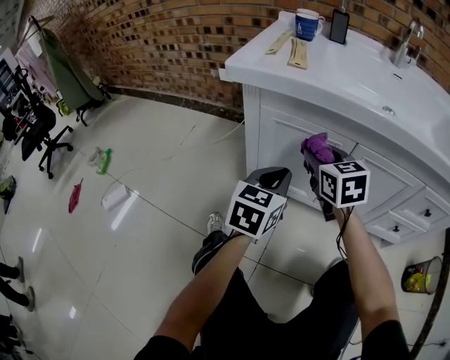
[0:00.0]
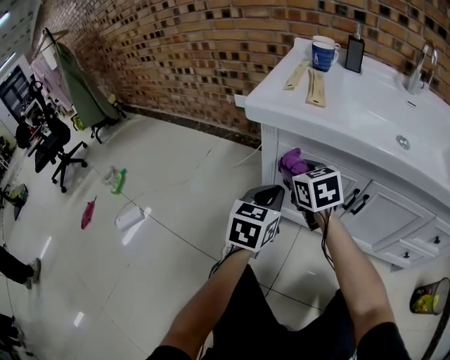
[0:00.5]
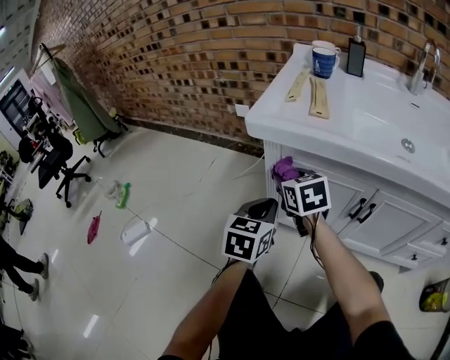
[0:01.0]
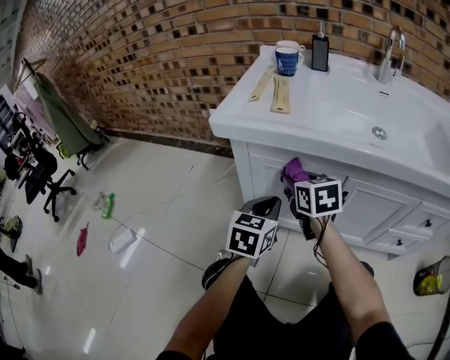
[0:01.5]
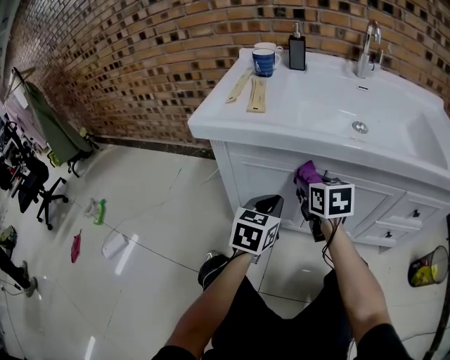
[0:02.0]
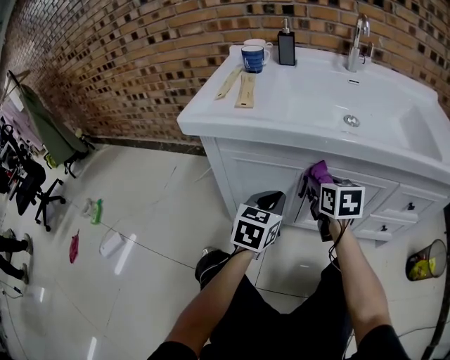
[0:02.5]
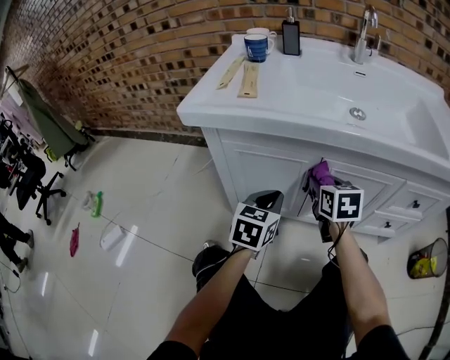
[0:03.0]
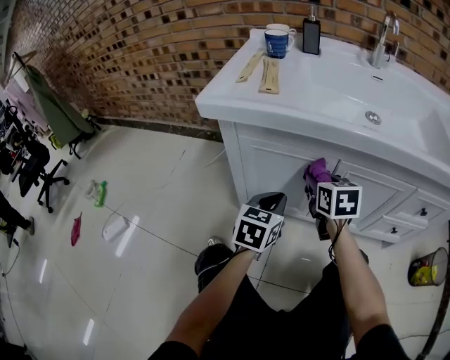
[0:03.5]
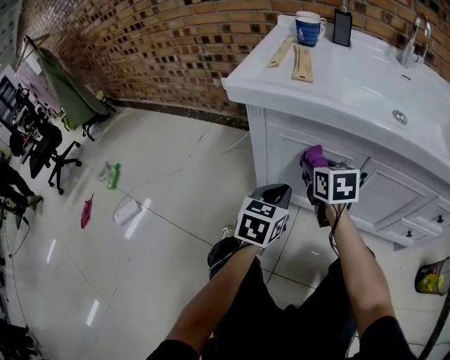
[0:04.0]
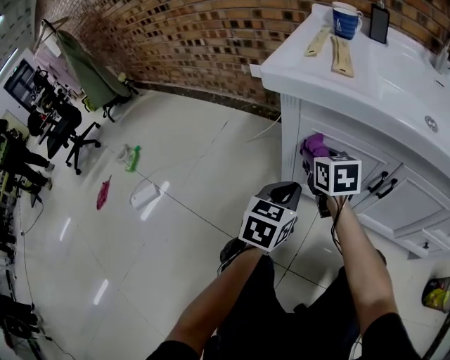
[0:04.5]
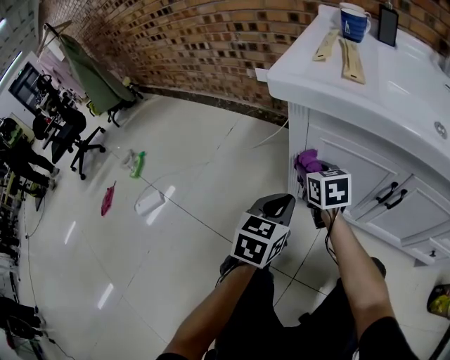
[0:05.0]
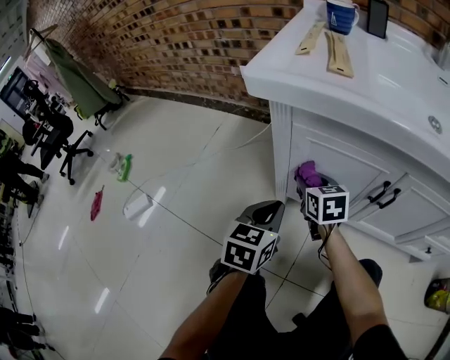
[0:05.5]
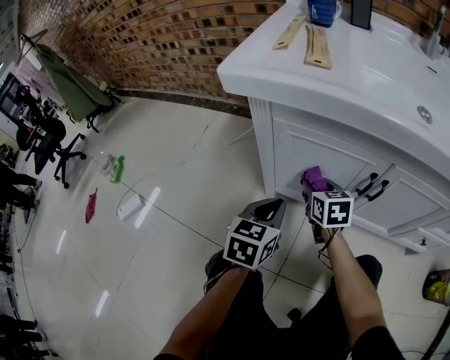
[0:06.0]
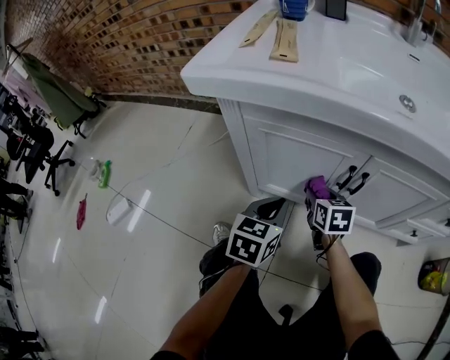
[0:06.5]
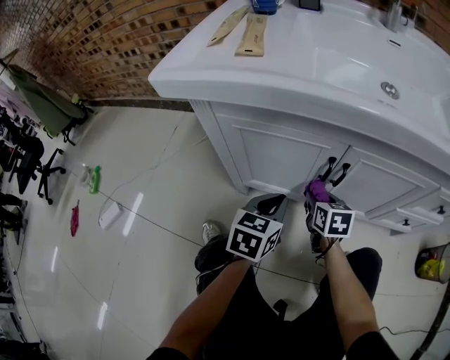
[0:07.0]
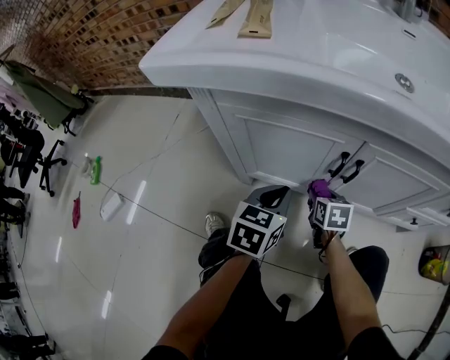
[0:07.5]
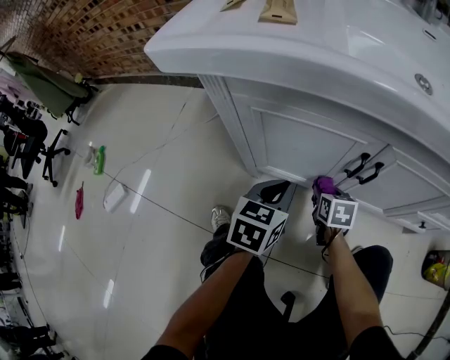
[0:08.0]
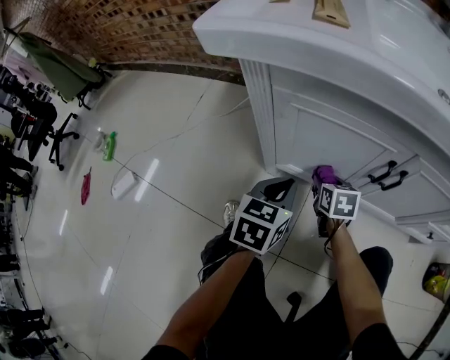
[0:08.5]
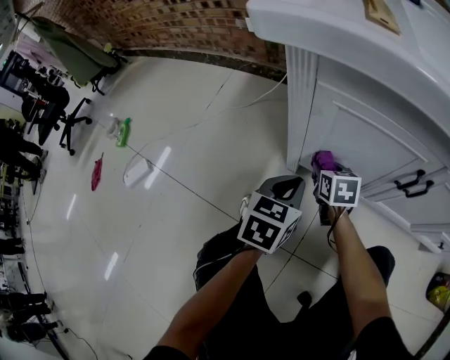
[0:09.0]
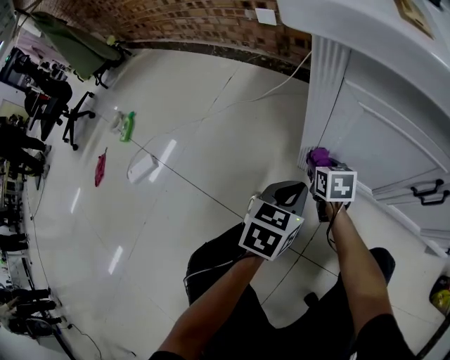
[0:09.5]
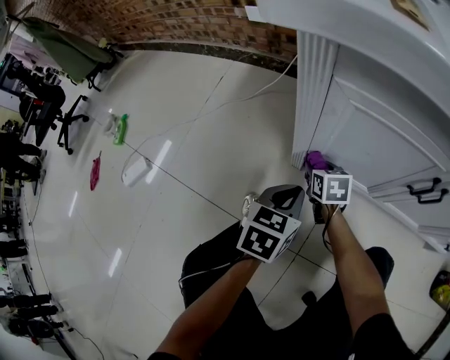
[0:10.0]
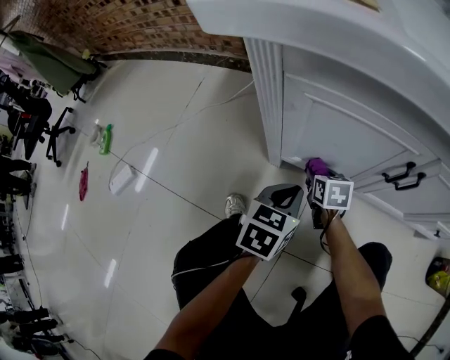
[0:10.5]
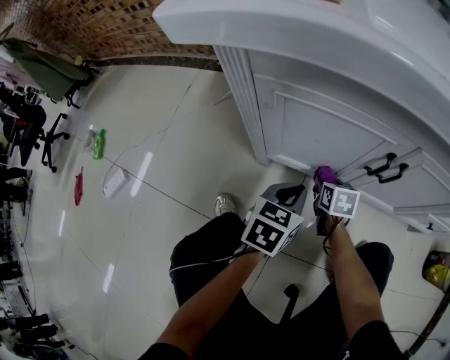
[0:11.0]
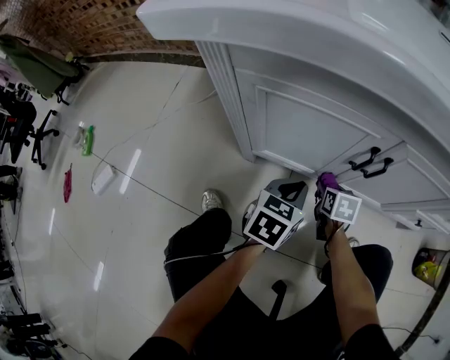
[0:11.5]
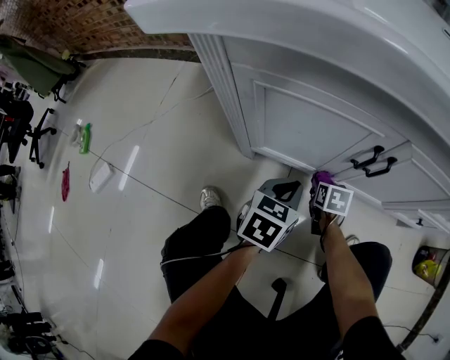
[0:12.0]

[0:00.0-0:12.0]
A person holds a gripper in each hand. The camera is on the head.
0:00.0 to 0:02.0: The left gripper moves approximately 10 cm to the left and comes back, while the right gripper goes to the left and returns, approximately 15 cm each way.
0:02.0 to 0:04.0: Both grippers move to the left, some 10 cm.
0:04.0 to 0:06.0: The left gripper shifts about 5 cm downward, while the right gripper is displaced downward by approximately 15 cm, and moves roughly 15 cm to the left and comes back.
0:06.0 to 0:08.0: The right gripper goes about 20 cm downward and to the right, and swivels about 20 degrees, while the left gripper moves to the right, about 5 cm.
0:08.0 to 0:10.0: The left gripper shifts roughly 10 cm to the left. Meanwhile the right gripper is displaced to the left by approximately 20 cm.
0:10.0 to 0:12.0: The left gripper moves to the right, some 15 cm. Meanwhile the right gripper heads to the right, covering about 25 cm, and rotates about 20 degrees.

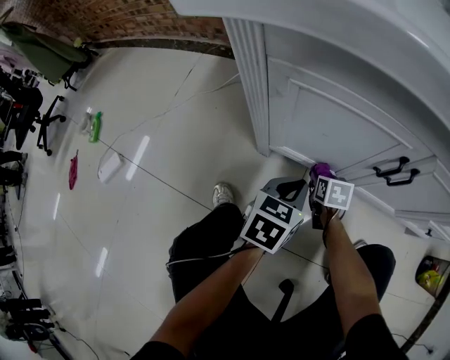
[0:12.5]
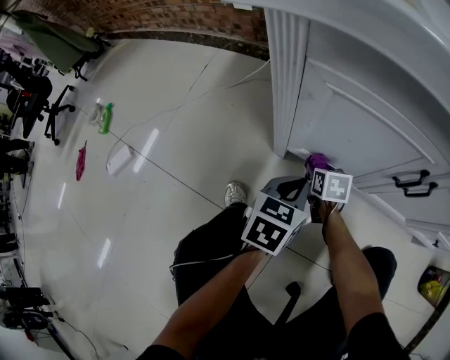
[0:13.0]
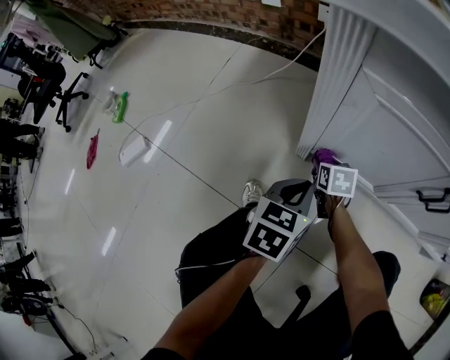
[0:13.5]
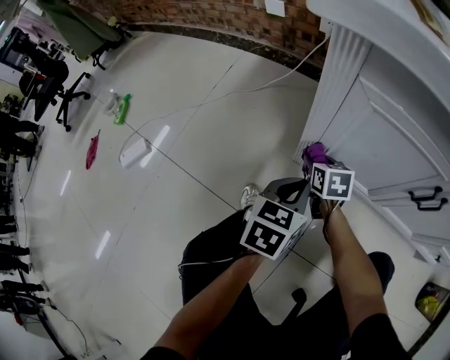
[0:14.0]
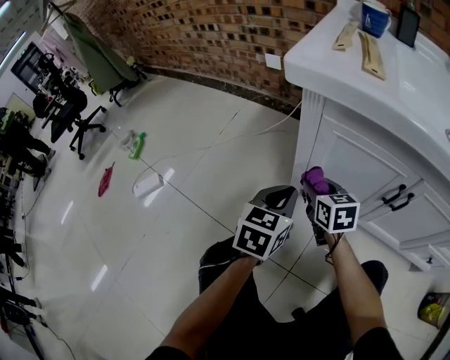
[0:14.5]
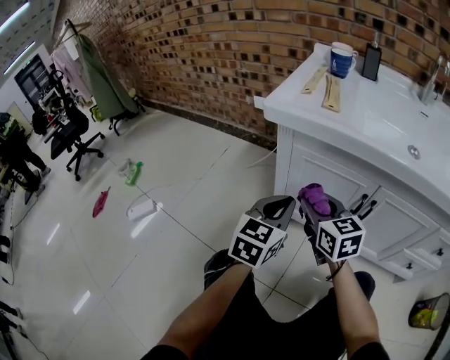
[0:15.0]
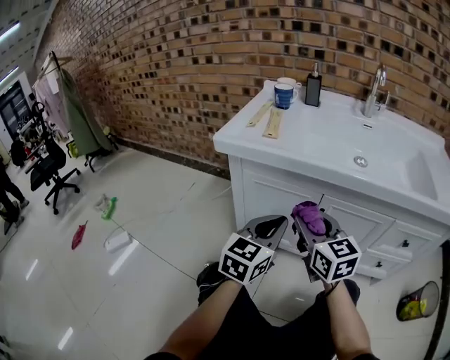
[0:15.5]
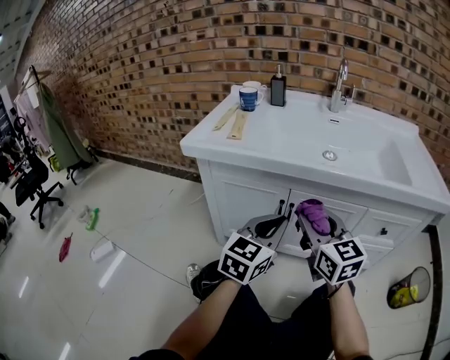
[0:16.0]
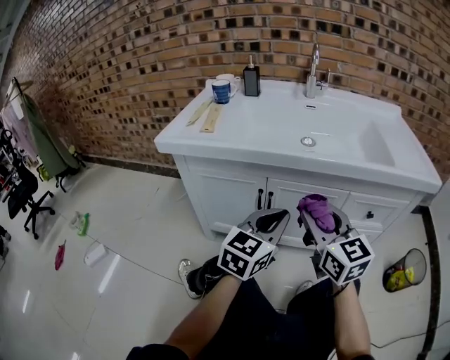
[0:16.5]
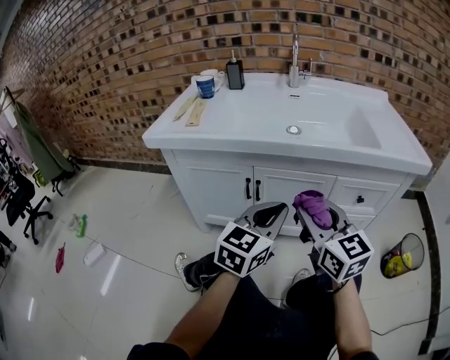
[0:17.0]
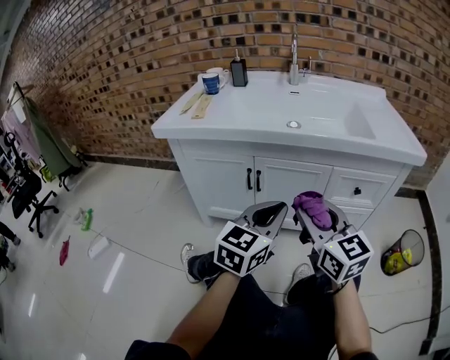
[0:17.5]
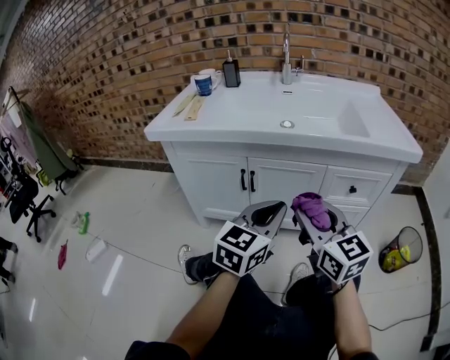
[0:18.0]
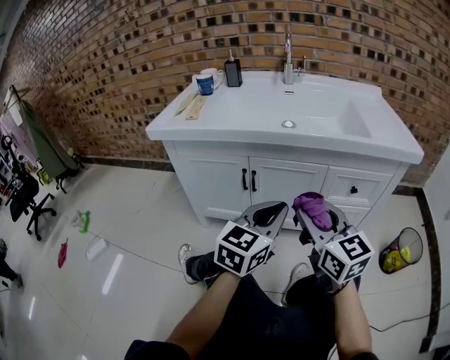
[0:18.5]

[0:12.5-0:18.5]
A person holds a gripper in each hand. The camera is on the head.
0:12.5 to 0:14.5: The right gripper heads upward and to the left, covering about 30 cm, and turns by roughly 30 degrees. Meanwhile the left gripper heads to the left and upward, covering approximately 20 cm.
0:14.5 to 0:16.5: The left gripper is displaced to the right and upward by approximately 40 cm, and rotates some 40 degrees; the right gripper heads to the right, upward and backward, covering some 50 cm, and turns by approximately 40 degrees.
0:16.5 to 0:18.5: Both grippers travel together backward and to the right, some 10 cm.

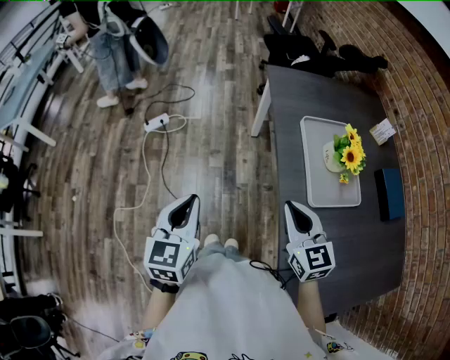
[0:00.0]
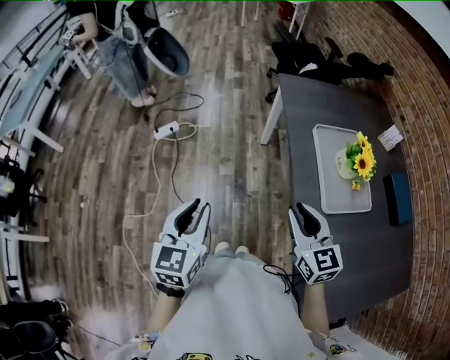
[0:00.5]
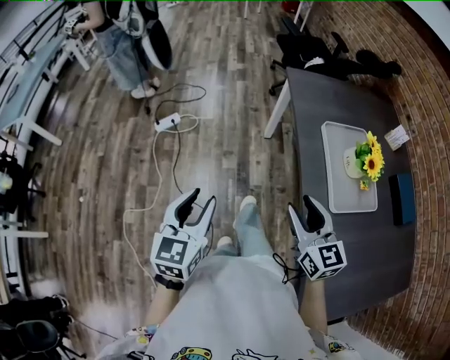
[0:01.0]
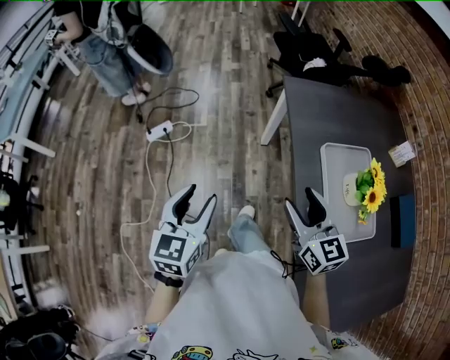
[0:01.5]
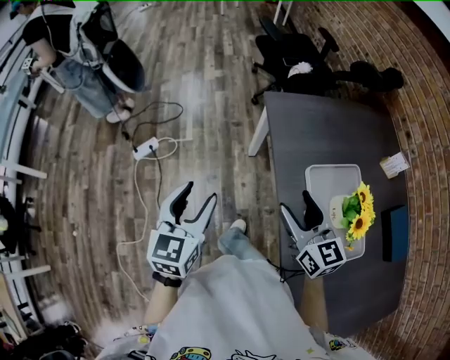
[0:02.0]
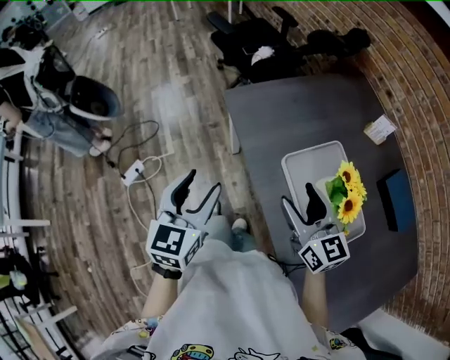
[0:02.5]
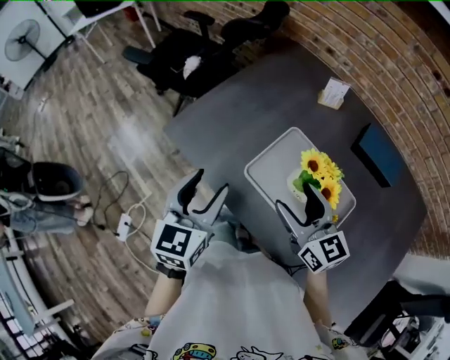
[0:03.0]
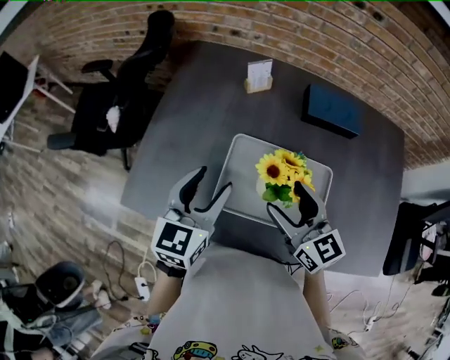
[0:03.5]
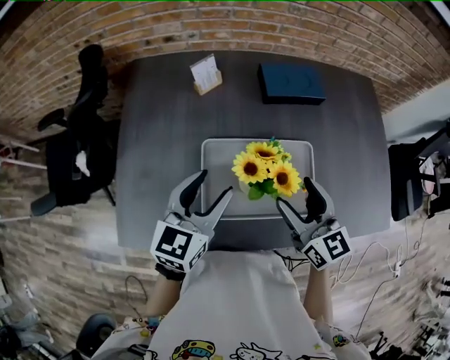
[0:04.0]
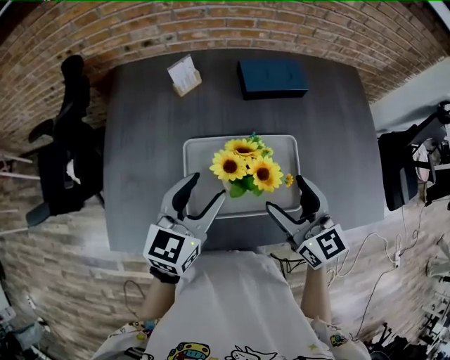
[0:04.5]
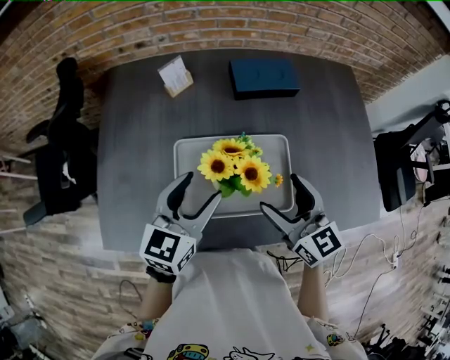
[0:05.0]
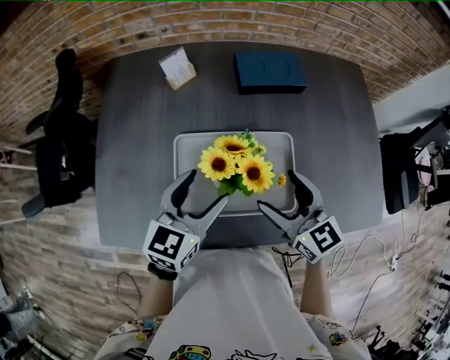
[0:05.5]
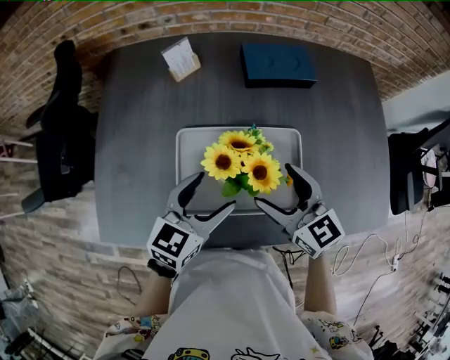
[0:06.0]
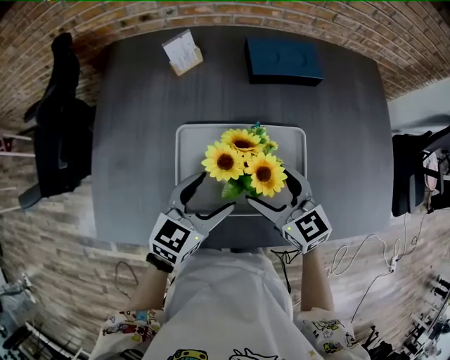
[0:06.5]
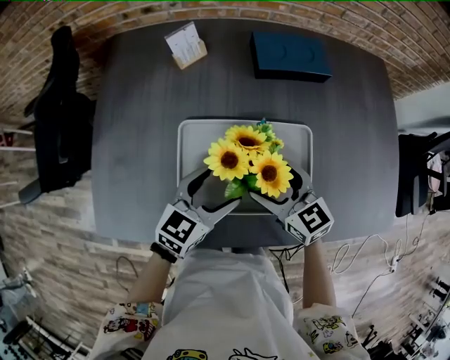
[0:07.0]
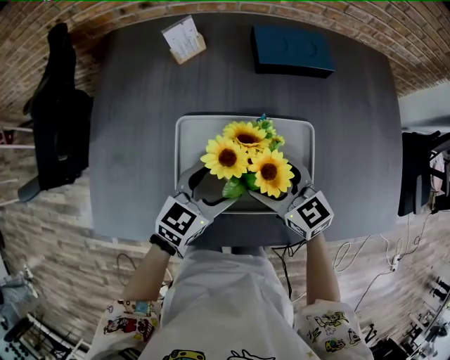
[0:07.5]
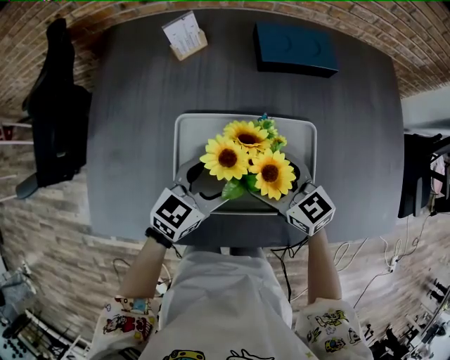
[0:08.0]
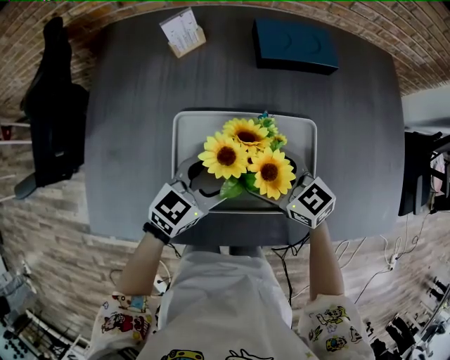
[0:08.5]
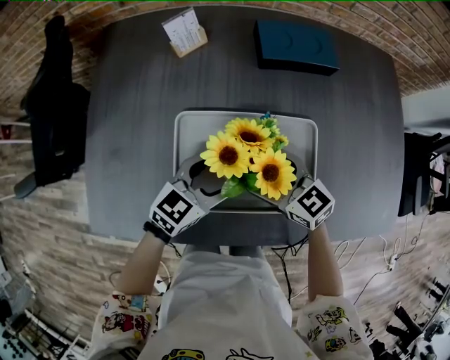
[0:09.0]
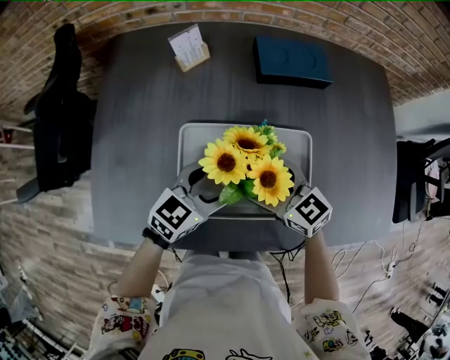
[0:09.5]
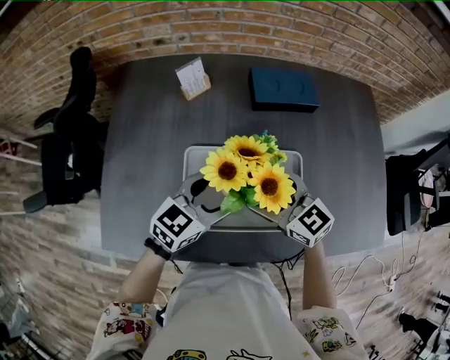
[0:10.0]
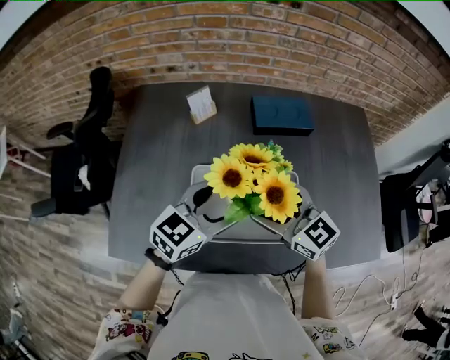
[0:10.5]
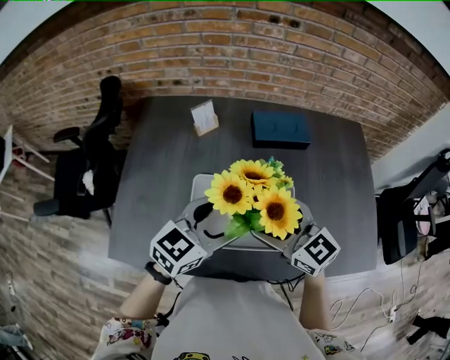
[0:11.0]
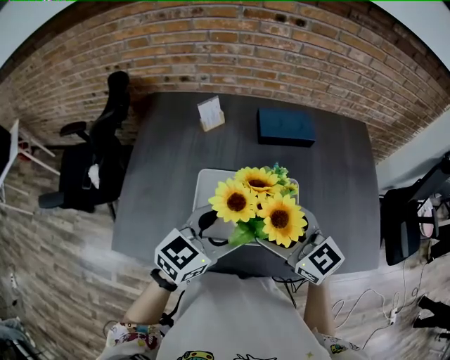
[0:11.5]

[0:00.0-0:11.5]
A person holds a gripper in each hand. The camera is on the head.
0:00.0 to 0:02.0: The grippers both shift forward by roughly 25 cm. The left gripper opens its fingers. The right gripper opens its fingers.
0:02.0 to 0:04.0: The left gripper moves about 40 cm, and swivels about 90 degrees; the right gripper moves roughly 25 cm, and swivels some 80 degrees.
0:04.0 to 0:06.0: The left gripper travels to the right and downward by approximately 10 cm.
0:06.0 to 0:07.5: Both grippers move downward, some 10 cm.
0:07.5 to 0:09.5: The grippers move only a little.
0:09.5 to 0:11.5: The right gripper shifts about 20 cm upward. The left gripper is displaced upward and backward by approximately 20 cm.
